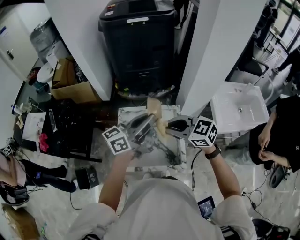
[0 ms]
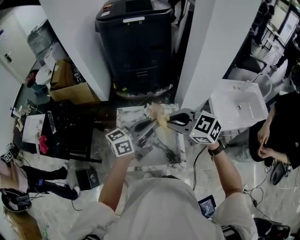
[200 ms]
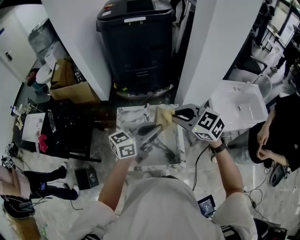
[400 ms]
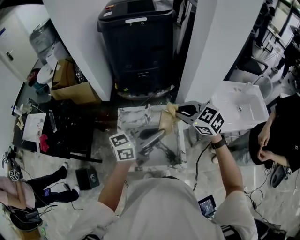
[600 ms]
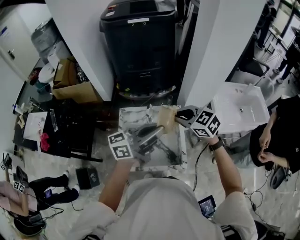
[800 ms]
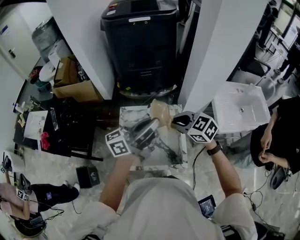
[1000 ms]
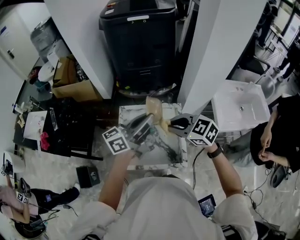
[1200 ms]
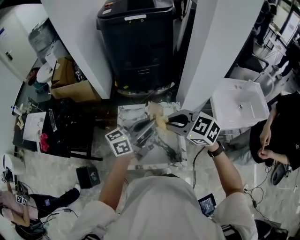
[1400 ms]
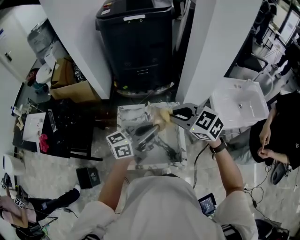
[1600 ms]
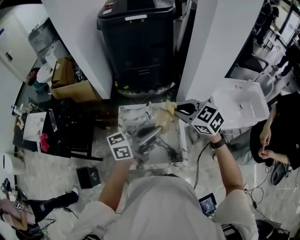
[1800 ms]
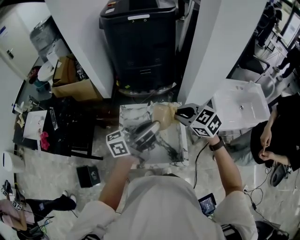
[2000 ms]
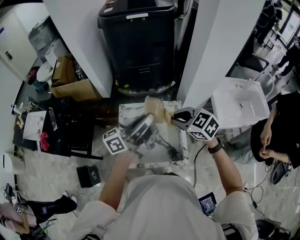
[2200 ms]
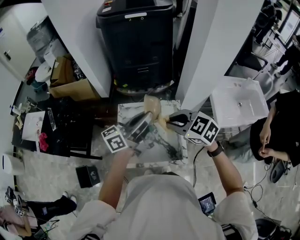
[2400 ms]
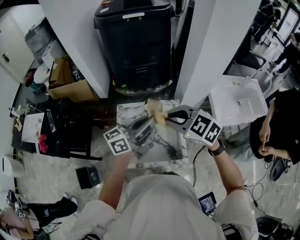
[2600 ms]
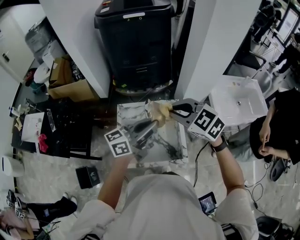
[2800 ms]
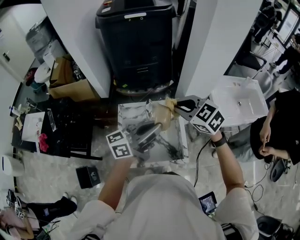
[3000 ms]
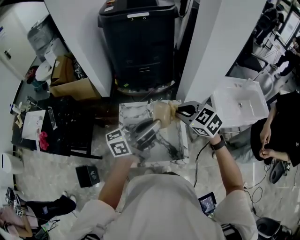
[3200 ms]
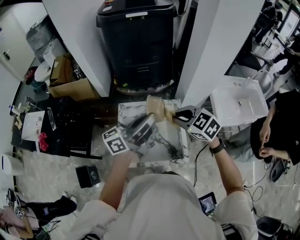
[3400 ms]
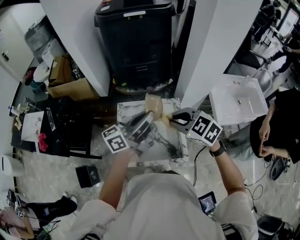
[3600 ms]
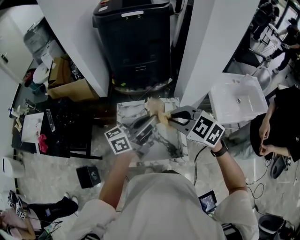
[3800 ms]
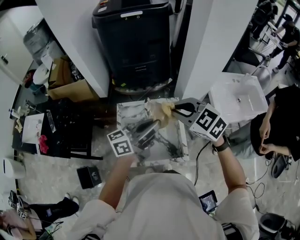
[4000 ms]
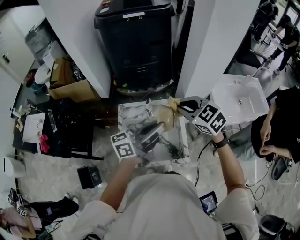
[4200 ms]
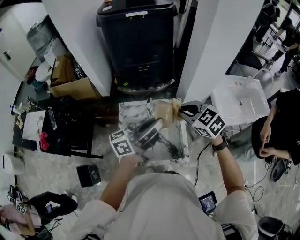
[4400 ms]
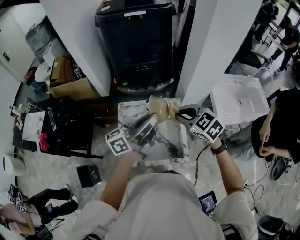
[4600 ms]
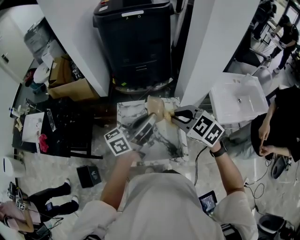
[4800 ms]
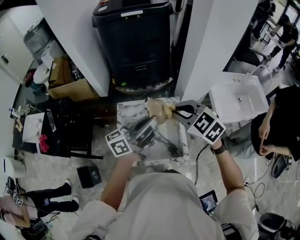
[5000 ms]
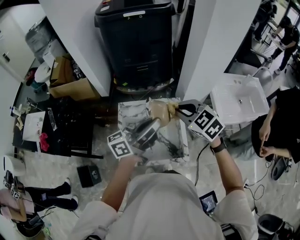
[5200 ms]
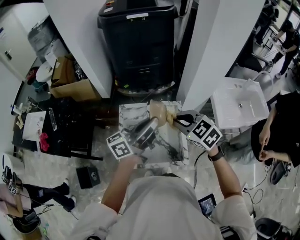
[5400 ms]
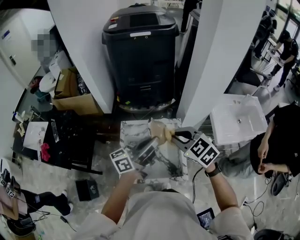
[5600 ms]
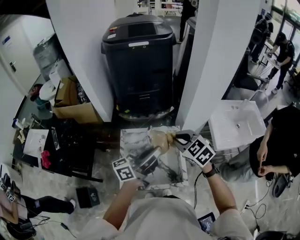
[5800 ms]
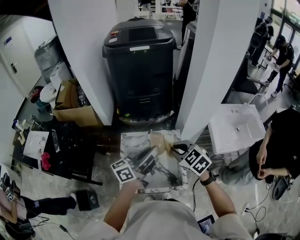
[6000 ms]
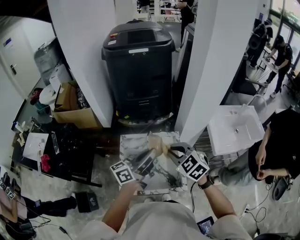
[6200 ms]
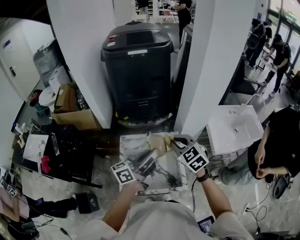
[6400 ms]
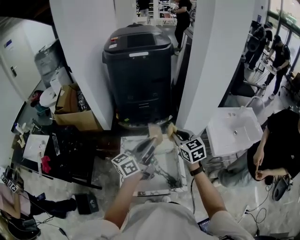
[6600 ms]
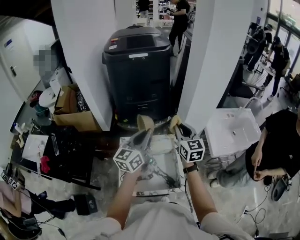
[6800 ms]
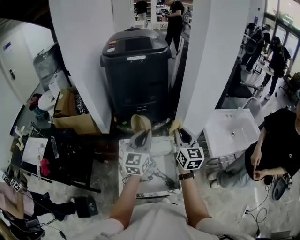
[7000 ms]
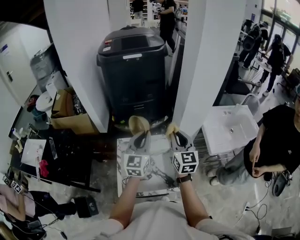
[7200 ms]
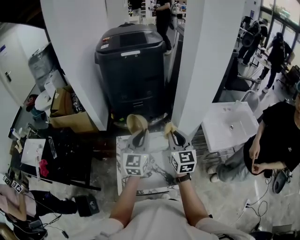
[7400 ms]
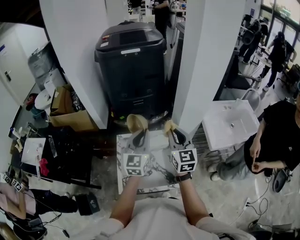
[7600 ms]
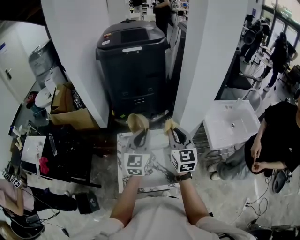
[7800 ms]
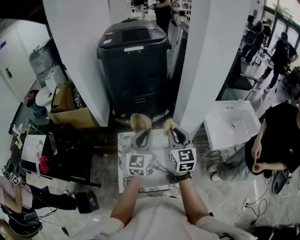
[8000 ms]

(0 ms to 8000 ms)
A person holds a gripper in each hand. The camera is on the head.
0 ms - 1600 ms: The left gripper shifts by some 5 cm.
1600 ms - 3200 ms: The right gripper goes up and down, approximately 5 cm each way, reversing 2 times. Meanwhile the left gripper shifts by some 5 cm.
4800 ms - 6400 ms: There are only small adjustments of the grippers.
6400 ms - 8000 ms: The left gripper goes some 5 cm forward, and twists roughly 50 degrees clockwise, seen from behind. The right gripper rotates some 40 degrees.

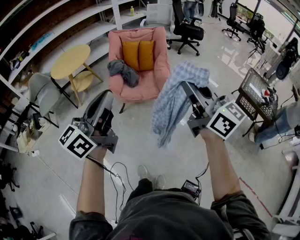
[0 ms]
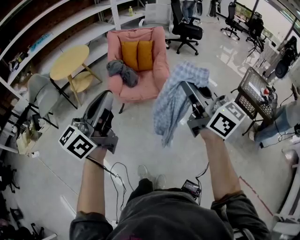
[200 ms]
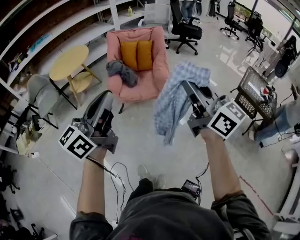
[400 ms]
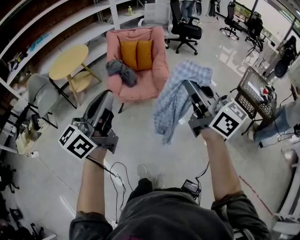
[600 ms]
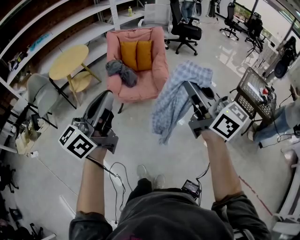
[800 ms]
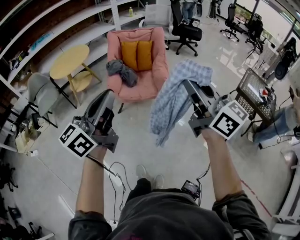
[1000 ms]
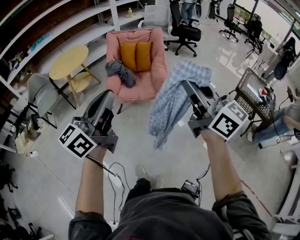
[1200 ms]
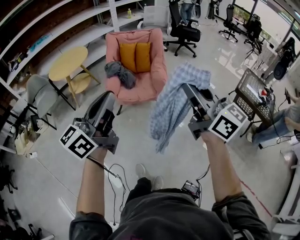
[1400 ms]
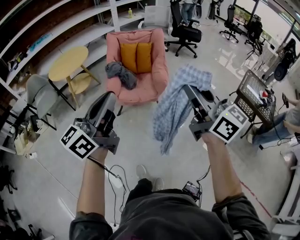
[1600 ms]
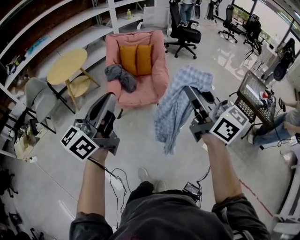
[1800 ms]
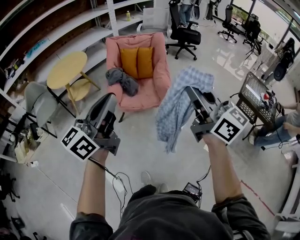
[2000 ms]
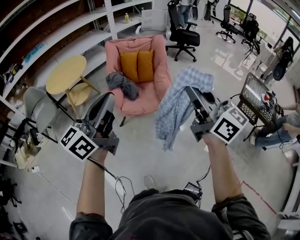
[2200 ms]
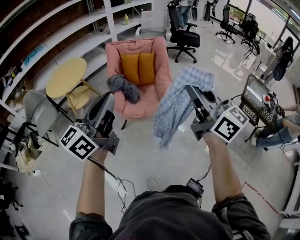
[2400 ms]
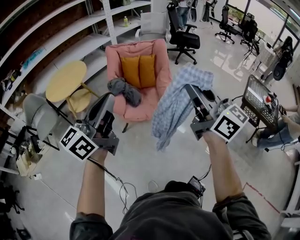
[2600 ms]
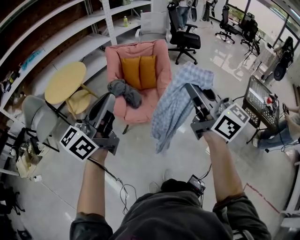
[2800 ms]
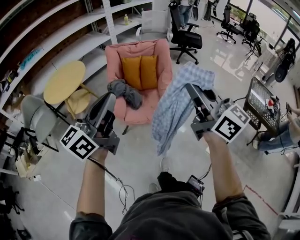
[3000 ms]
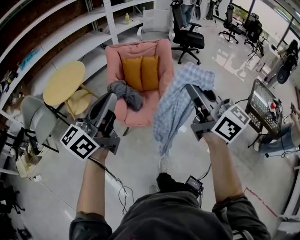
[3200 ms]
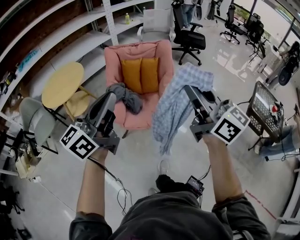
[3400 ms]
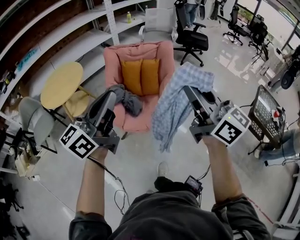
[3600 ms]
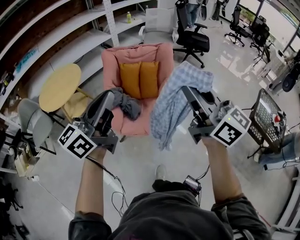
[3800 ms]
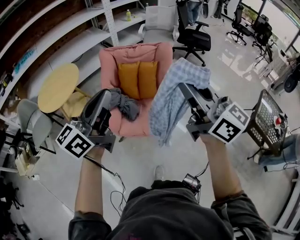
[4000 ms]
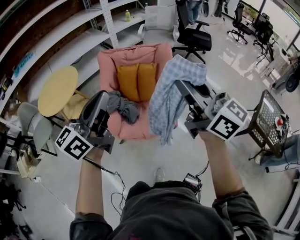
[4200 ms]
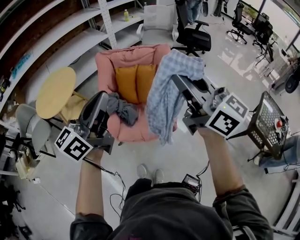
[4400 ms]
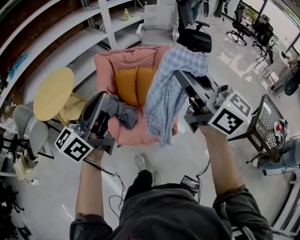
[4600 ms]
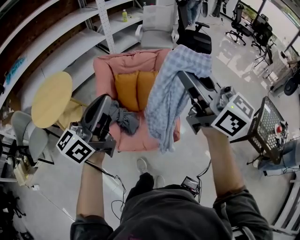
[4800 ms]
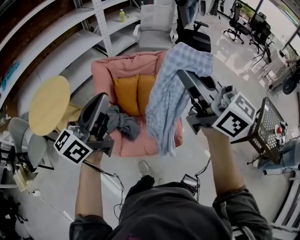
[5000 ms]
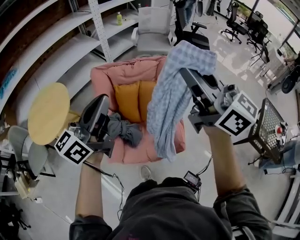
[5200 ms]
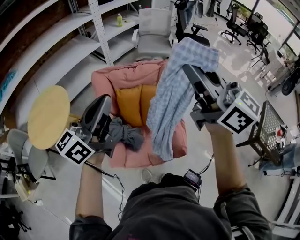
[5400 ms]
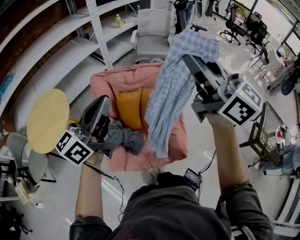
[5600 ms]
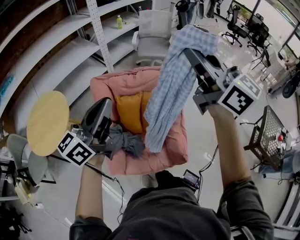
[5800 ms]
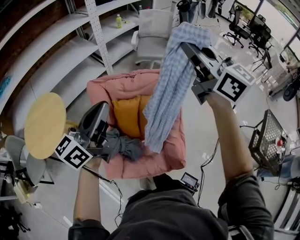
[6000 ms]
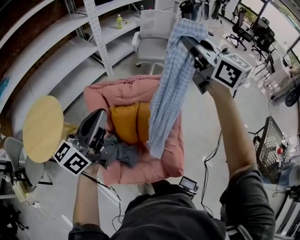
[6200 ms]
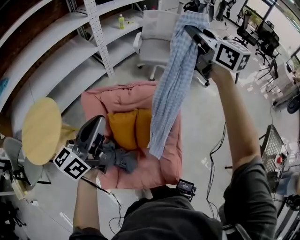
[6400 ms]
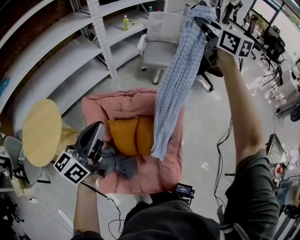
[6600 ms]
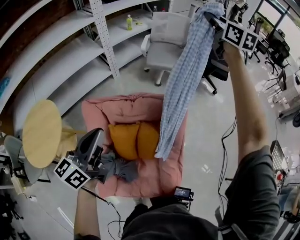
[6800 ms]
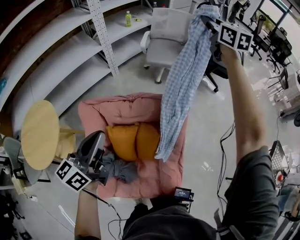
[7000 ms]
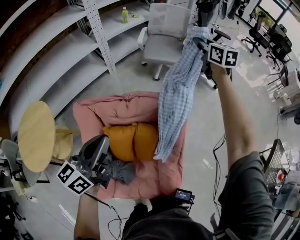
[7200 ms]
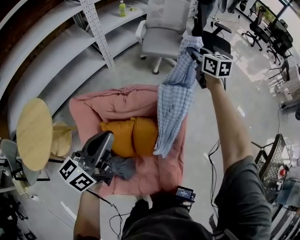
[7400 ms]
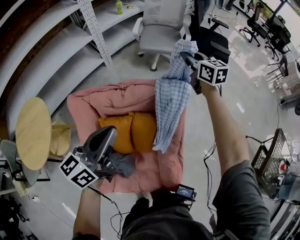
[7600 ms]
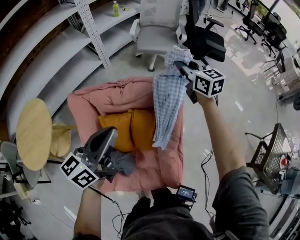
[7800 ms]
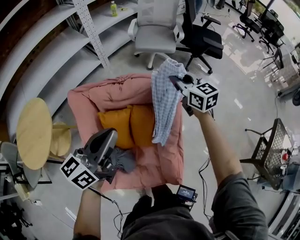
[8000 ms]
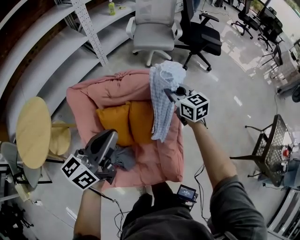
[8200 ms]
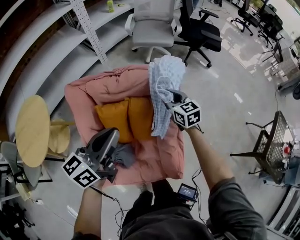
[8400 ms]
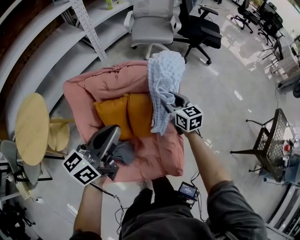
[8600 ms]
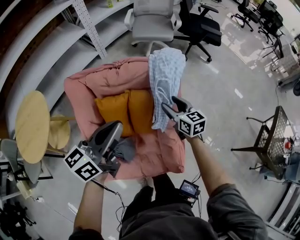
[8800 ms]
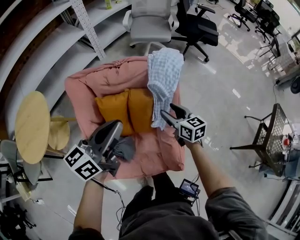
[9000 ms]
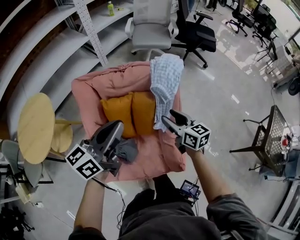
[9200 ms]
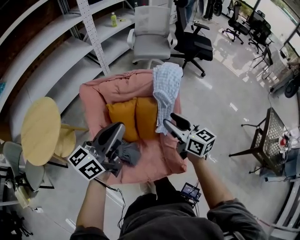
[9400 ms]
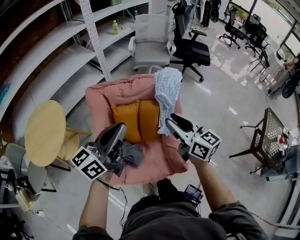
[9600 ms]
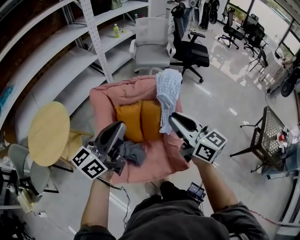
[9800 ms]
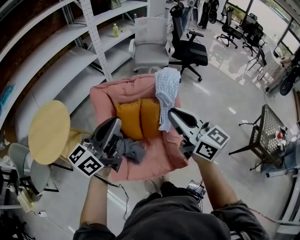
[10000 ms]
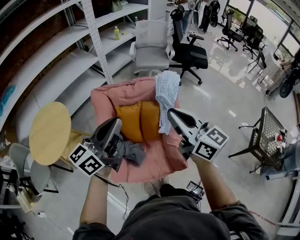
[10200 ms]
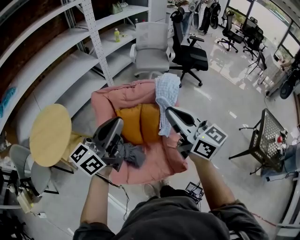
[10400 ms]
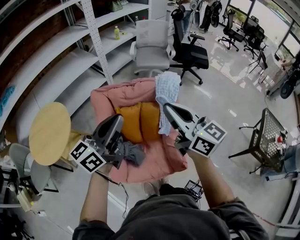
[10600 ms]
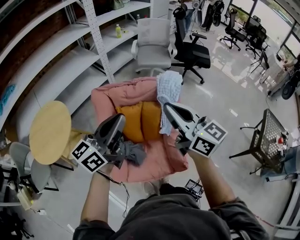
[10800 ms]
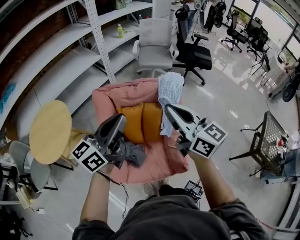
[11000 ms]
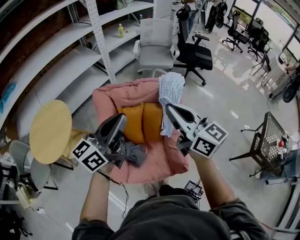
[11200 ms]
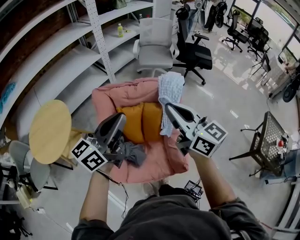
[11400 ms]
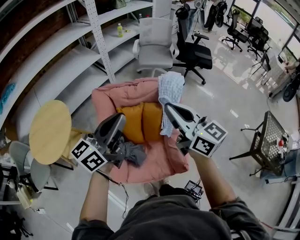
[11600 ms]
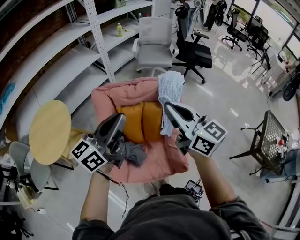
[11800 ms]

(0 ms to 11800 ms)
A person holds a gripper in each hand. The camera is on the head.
0 ms - 1400 ms: There are only small adjustments of the grippers.
1400 ms - 3000 ms: Both grippers travel together forward and to the left, about 25 cm.
3000 ms - 4400 ms: The grippers both shift forward by some 25 cm.
4400 ms - 6000 ms: The two grippers go approximately 35 cm forward.
6000 ms - 7400 ms: The left gripper heads forward and downward, covering about 25 cm, while the right gripper goes approximately 50 cm forward and downward, and swivels roughly 30 degrees.
7400 ms - 8800 ms: The right gripper travels backward and downward by about 40 cm, and opens its fingers; the left gripper shifts roughly 10 cm backward and to the right.
8800 ms - 10400 ms: The right gripper shifts about 40 cm upward and backward, swivels some 30 degrees, and closes up. The left gripper travels upward, backward and to the left by approximately 25 cm.
10400 ms - 11800 ms: The grippers make only small movements.

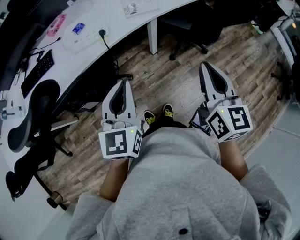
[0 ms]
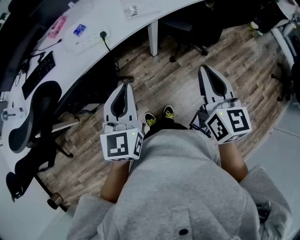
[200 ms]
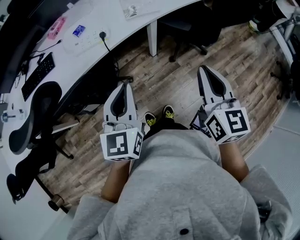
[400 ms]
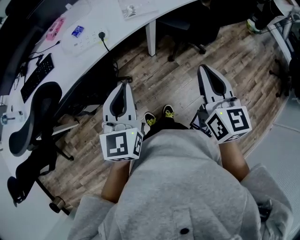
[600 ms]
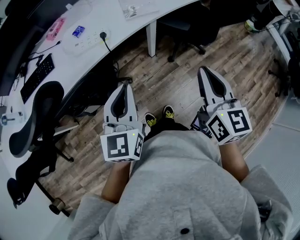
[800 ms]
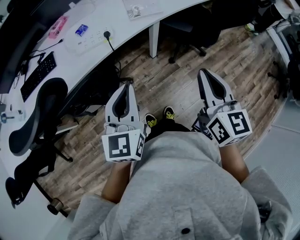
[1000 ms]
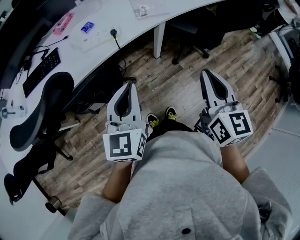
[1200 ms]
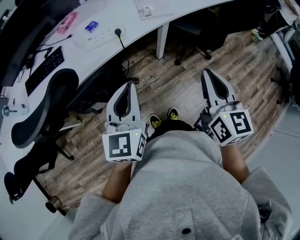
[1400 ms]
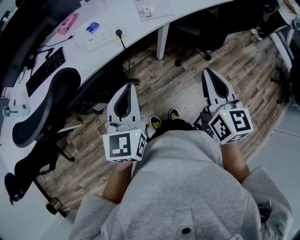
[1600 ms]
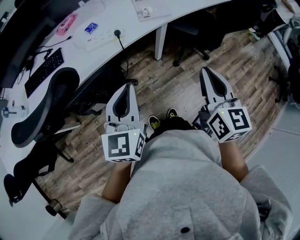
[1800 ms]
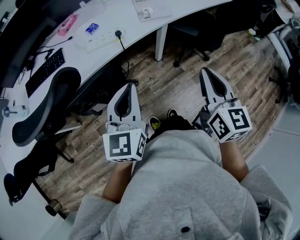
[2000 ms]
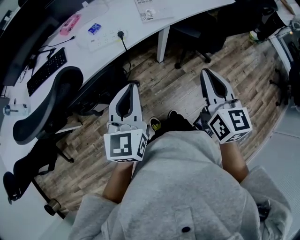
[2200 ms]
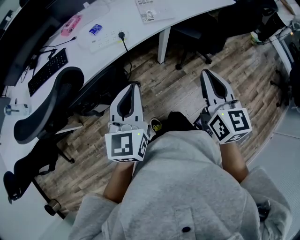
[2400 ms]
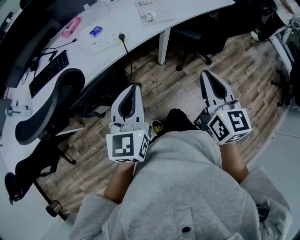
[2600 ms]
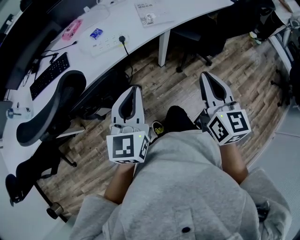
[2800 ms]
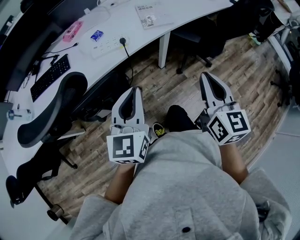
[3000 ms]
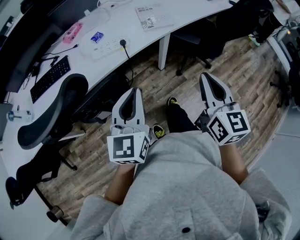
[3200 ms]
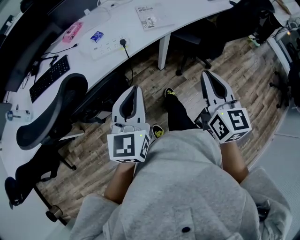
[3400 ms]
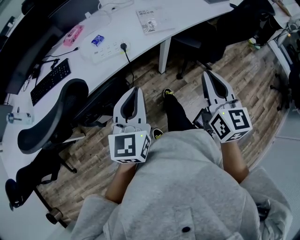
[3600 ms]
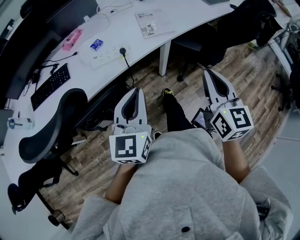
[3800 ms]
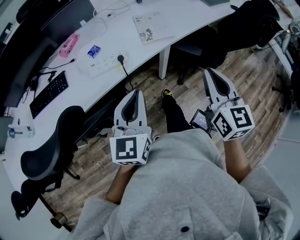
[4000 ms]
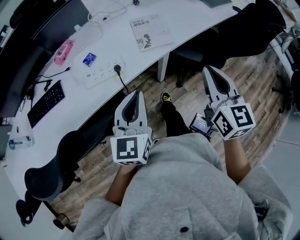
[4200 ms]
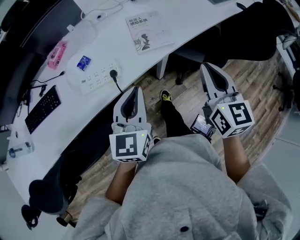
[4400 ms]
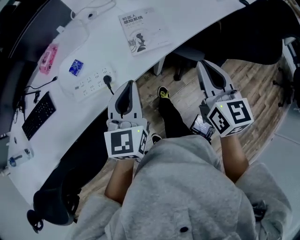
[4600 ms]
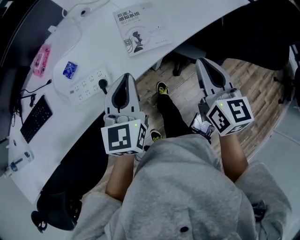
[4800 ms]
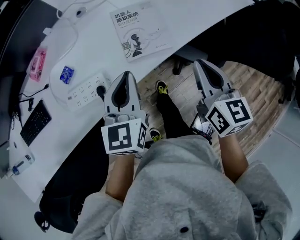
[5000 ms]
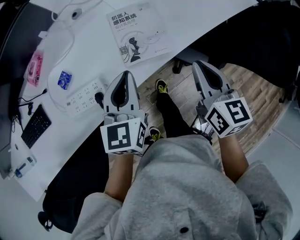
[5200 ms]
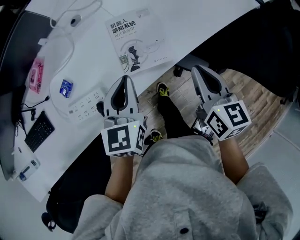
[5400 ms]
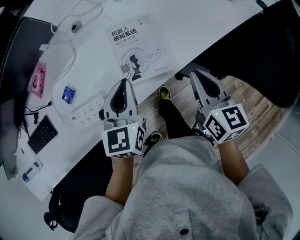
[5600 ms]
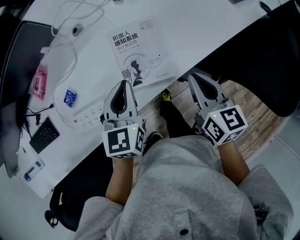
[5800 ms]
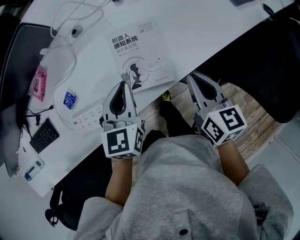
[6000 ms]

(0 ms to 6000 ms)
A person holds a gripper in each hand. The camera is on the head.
0 ms - 1600 ms: The grippers both shift to the left by about 5 cm.
1600 ms - 3000 ms: The grippers move only a little.
3000 ms - 4400 ms: The two grippers go about 25 cm forward.
4400 ms - 6000 ms: The left gripper moves forward, approximately 25 cm, while the right gripper travels forward and downward by about 25 cm, and changes its angle by about 30 degrees.
